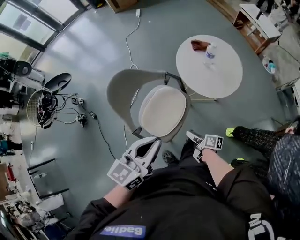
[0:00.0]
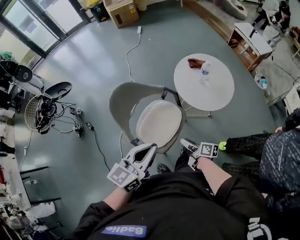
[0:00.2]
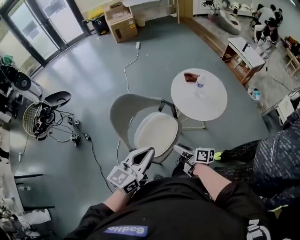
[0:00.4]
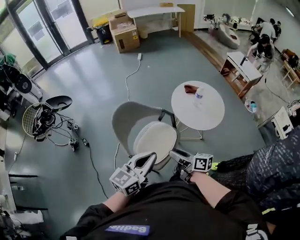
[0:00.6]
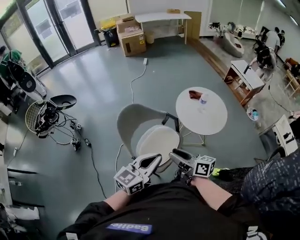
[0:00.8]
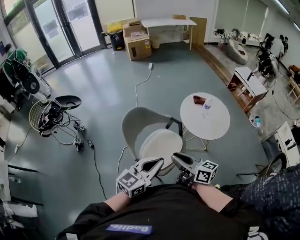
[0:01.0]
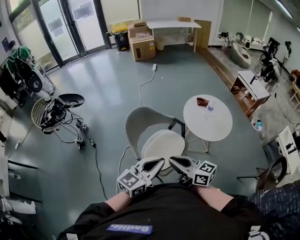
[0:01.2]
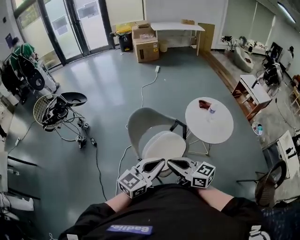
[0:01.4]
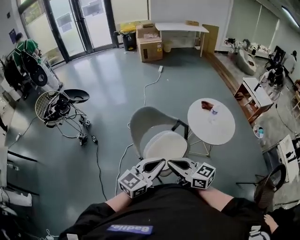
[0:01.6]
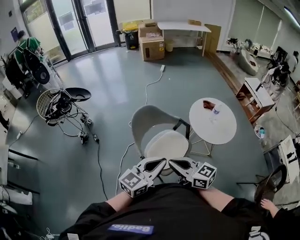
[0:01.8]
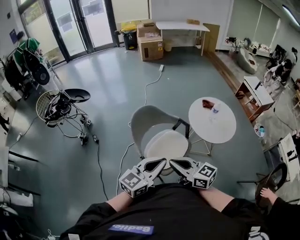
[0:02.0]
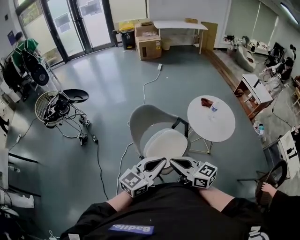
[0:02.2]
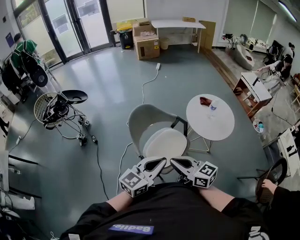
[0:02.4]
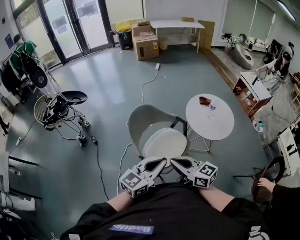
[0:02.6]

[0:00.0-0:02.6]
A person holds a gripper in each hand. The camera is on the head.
0:00.0 to 0:01.2: The right gripper goes some 35 cm upward and to the left, rolls counterclockwise, seen from behind, by approximately 50 degrees, and closes its fingers. Meanwhile the left gripper changes place by approximately 10 cm.
0:01.2 to 0:02.6: There are only small adjustments of the grippers.

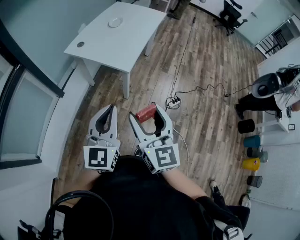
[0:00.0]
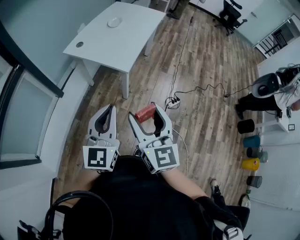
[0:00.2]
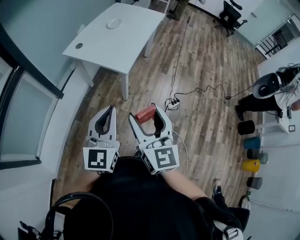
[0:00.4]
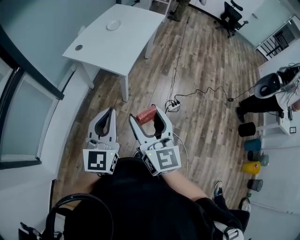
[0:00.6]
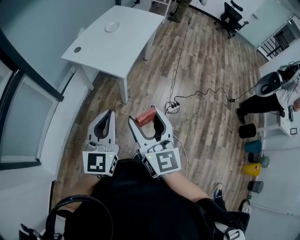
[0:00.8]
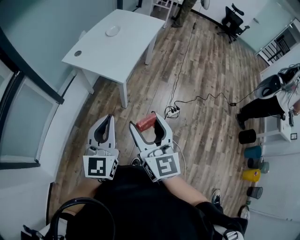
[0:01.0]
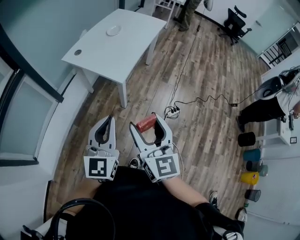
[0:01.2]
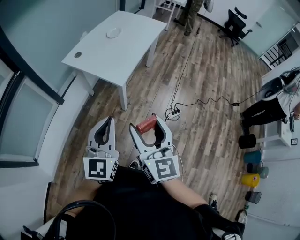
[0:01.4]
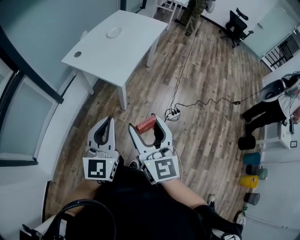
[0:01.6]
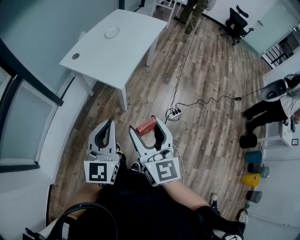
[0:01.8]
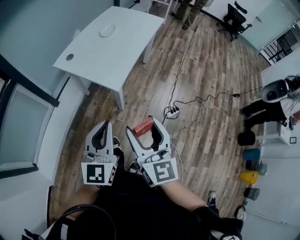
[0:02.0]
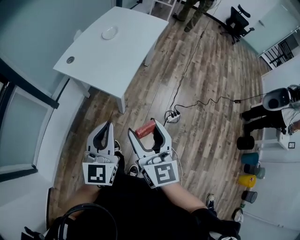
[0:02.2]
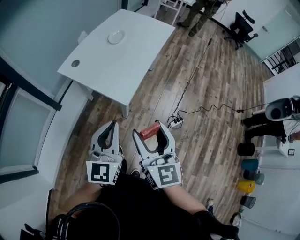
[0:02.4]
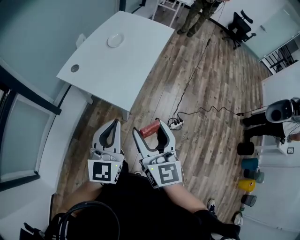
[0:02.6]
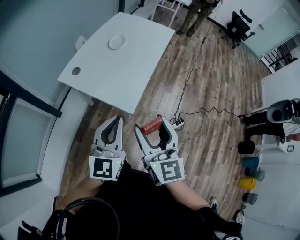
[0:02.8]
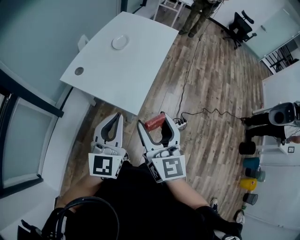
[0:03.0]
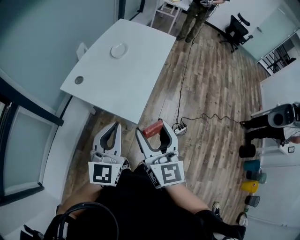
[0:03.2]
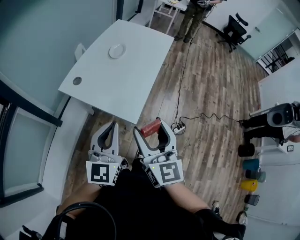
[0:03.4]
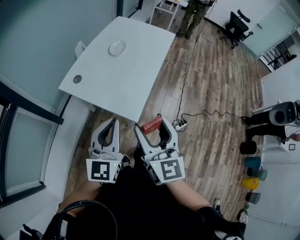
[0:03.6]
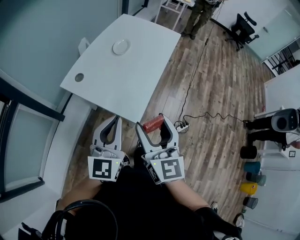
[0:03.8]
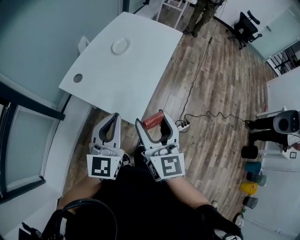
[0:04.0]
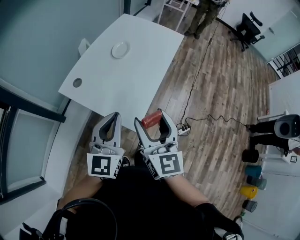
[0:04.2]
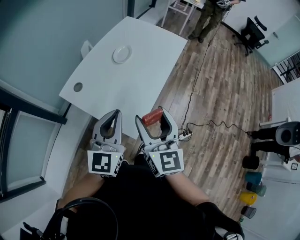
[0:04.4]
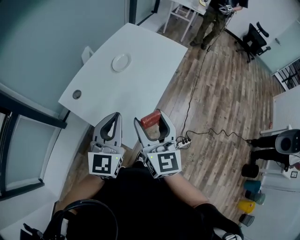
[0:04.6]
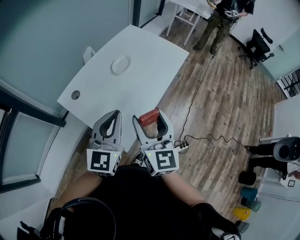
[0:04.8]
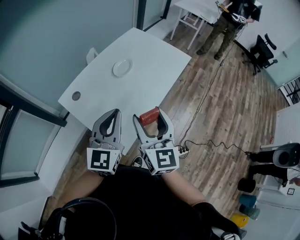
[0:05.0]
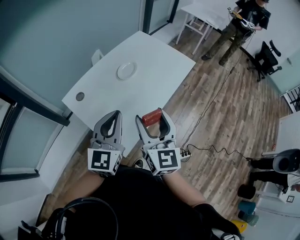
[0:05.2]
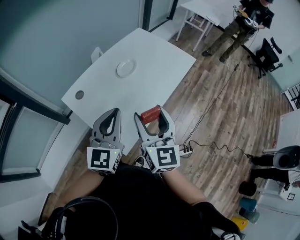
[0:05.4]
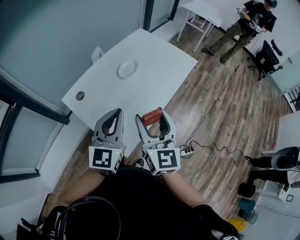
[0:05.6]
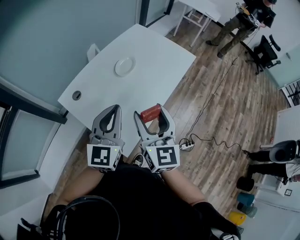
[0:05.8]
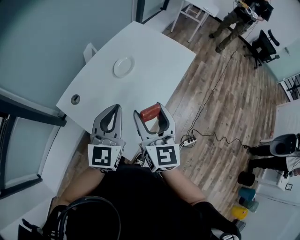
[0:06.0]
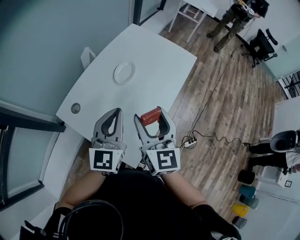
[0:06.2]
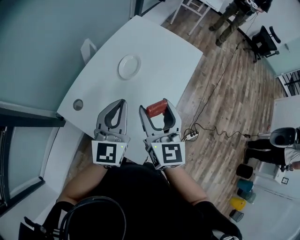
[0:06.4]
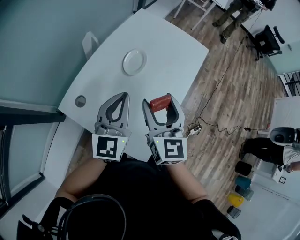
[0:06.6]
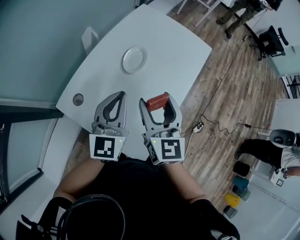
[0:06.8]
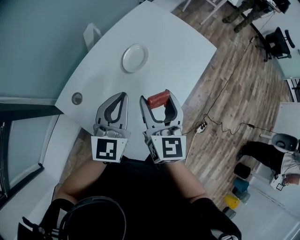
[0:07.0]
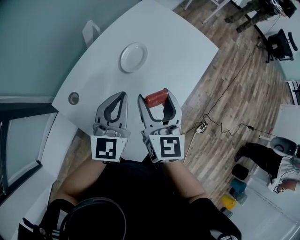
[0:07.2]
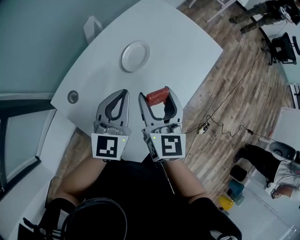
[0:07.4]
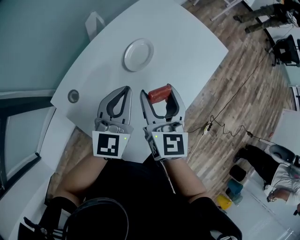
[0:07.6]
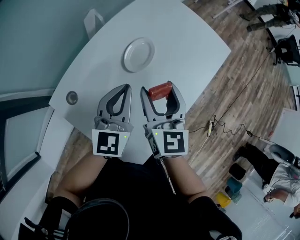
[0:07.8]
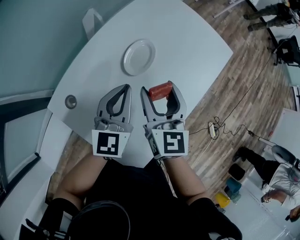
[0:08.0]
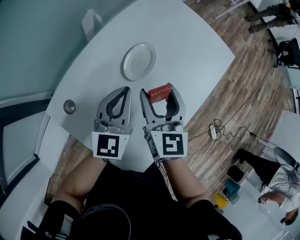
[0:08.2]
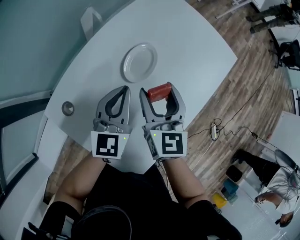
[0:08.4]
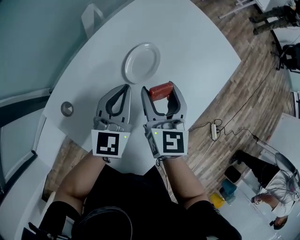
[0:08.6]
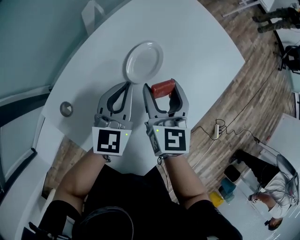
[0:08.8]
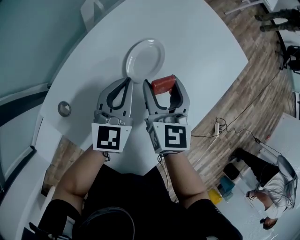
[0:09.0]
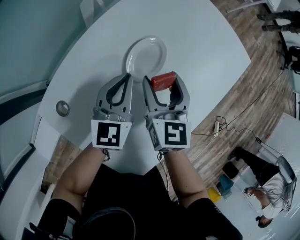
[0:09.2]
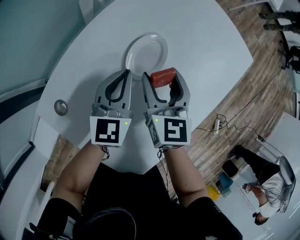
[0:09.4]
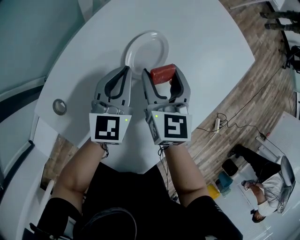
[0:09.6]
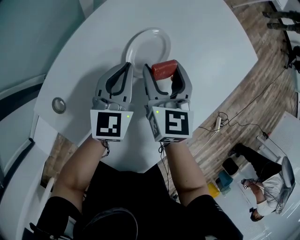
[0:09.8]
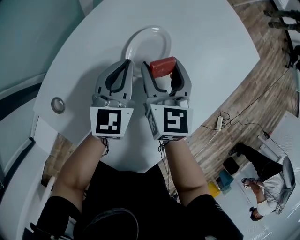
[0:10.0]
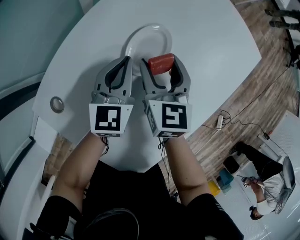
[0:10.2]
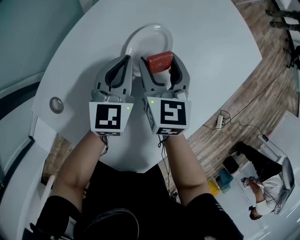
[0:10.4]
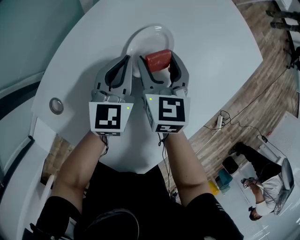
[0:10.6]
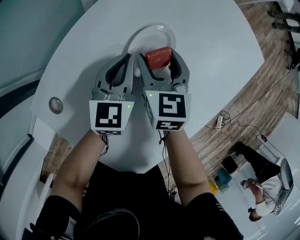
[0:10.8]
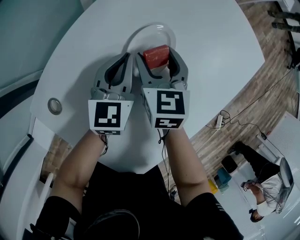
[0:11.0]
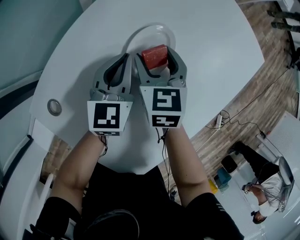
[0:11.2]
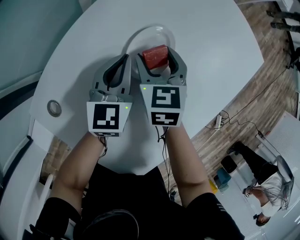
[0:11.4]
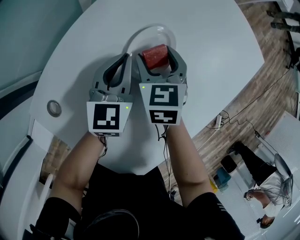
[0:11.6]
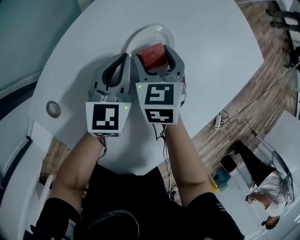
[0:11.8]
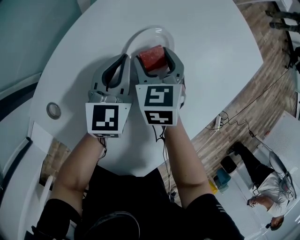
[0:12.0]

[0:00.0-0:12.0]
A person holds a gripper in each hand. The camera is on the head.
0:00.0 to 0:01.6: The grippers both shift to the right by some 5 cm.
0:01.6 to 0:03.0: The two grippers go approximately 20 cm forward.
0:03.0 to 0:04.4: The grippers both shift forward by about 15 cm.
0:04.4 to 0:06.0: The two grippers go roughly 15 cm forward.
0:06.0 to 0:07.6: The grippers both shift forward and downward by roughly 15 cm.
0:07.6 to 0:09.0: The grippers both shift forward and downward by roughly 15 cm.
0:09.0 to 0:10.4: The grippers both shift downward by about 5 cm.
0:10.4 to 0:12.0: The right gripper changes place by approximately 5 cm.

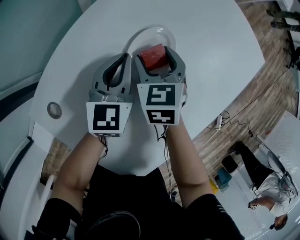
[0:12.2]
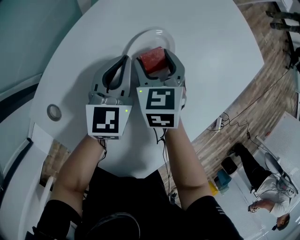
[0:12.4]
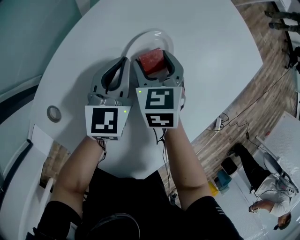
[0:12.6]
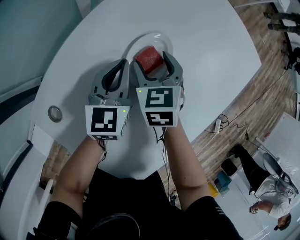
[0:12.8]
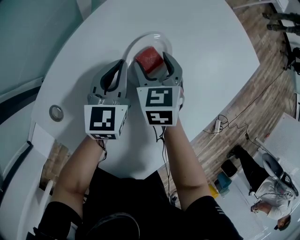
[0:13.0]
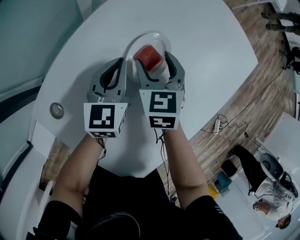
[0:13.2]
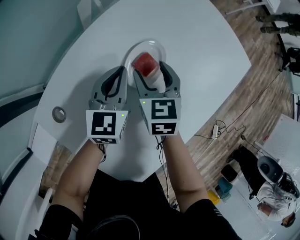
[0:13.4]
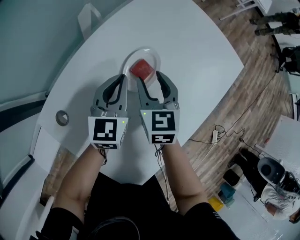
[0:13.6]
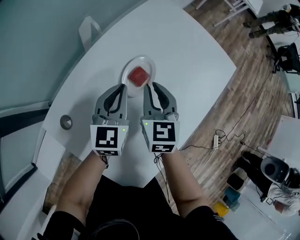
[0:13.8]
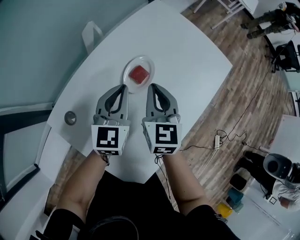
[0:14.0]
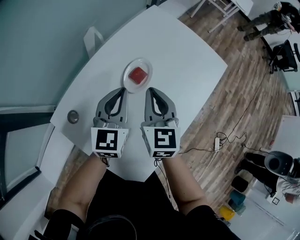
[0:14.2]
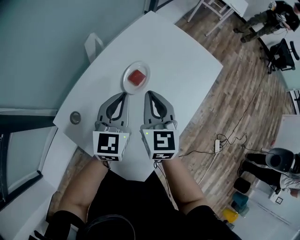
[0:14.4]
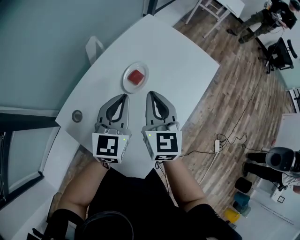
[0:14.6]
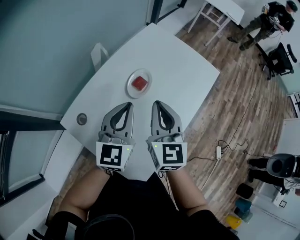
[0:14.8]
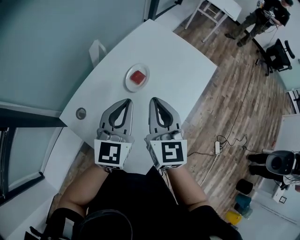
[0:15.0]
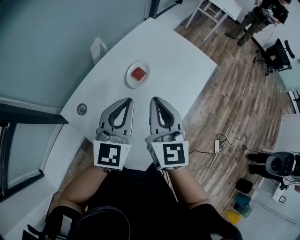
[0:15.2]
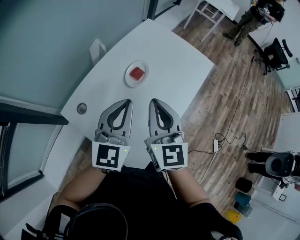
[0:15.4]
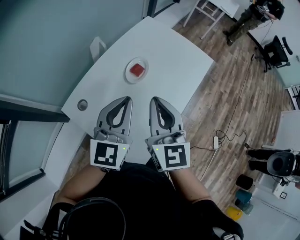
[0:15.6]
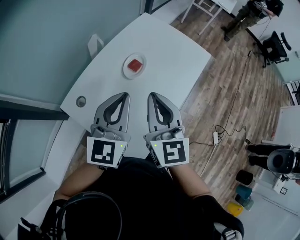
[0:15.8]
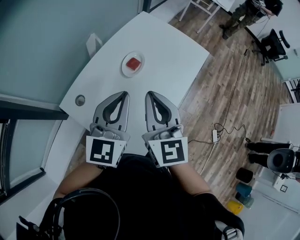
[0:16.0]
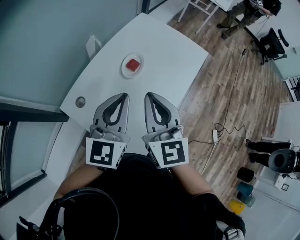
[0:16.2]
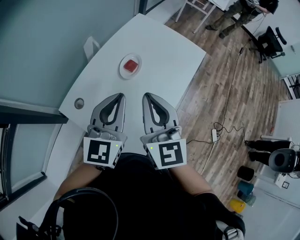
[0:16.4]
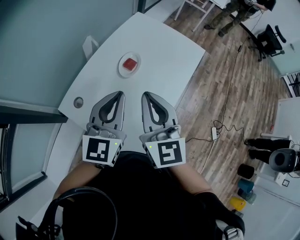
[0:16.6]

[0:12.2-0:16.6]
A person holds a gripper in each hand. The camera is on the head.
0:12.2 to 0:13.6: The right gripper is displaced upward by roughly 5 cm.
0:13.6 to 0:15.2: The grippers both shift upward and backward by some 25 cm. The right gripper swivels roughly 30 degrees, and closes its fingers.
0:15.2 to 0:16.6: The left gripper shifts by about 5 cm. Meanwhile the right gripper shifts approximately 5 cm backward.

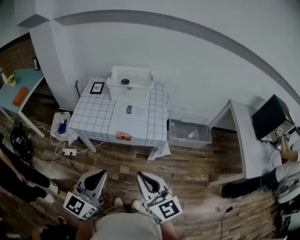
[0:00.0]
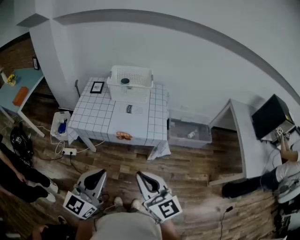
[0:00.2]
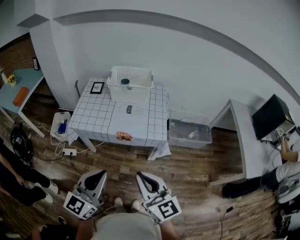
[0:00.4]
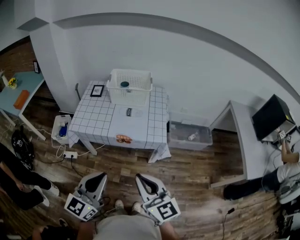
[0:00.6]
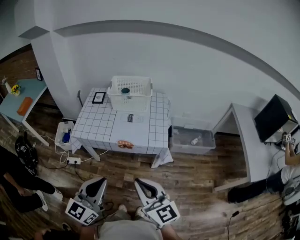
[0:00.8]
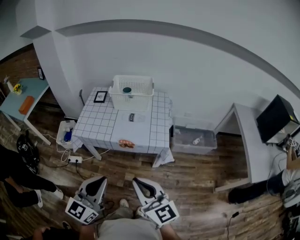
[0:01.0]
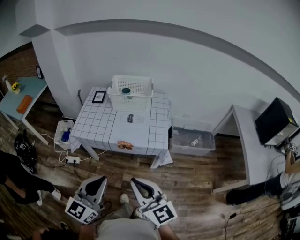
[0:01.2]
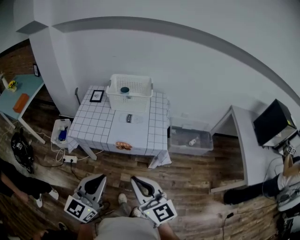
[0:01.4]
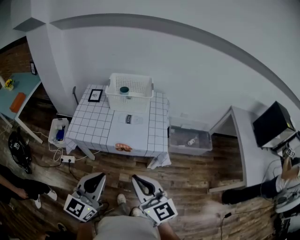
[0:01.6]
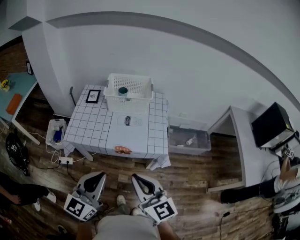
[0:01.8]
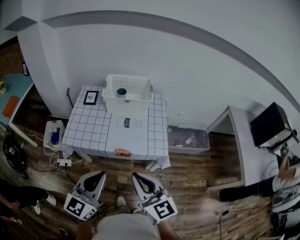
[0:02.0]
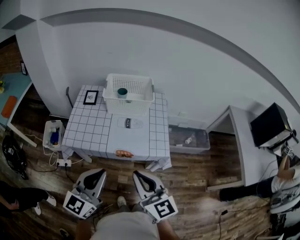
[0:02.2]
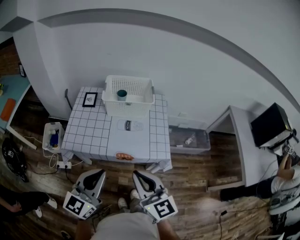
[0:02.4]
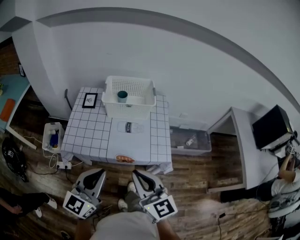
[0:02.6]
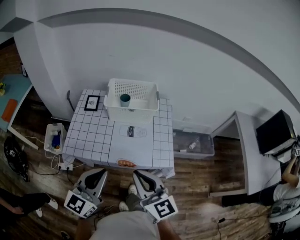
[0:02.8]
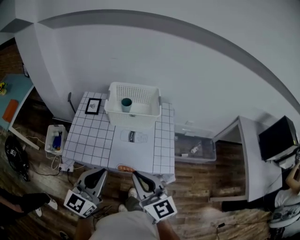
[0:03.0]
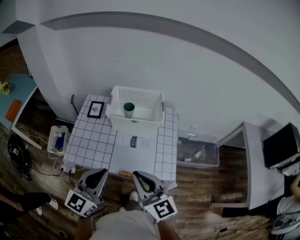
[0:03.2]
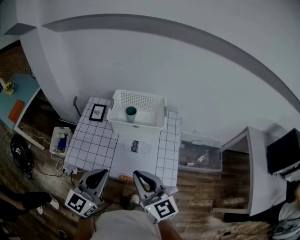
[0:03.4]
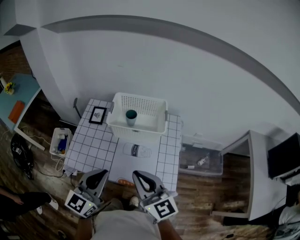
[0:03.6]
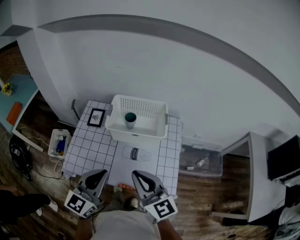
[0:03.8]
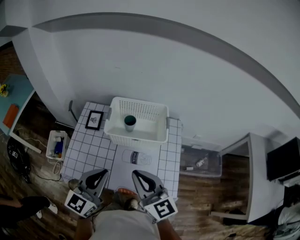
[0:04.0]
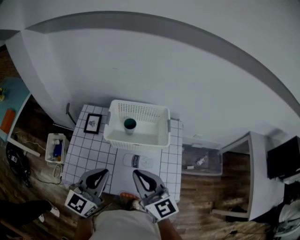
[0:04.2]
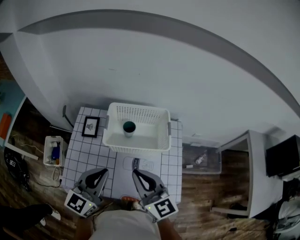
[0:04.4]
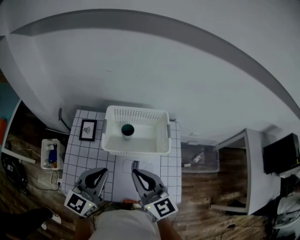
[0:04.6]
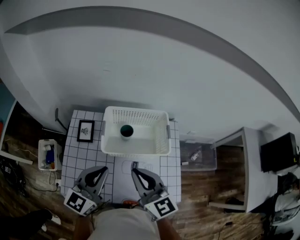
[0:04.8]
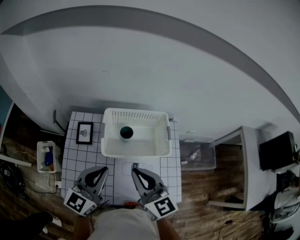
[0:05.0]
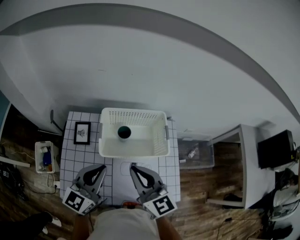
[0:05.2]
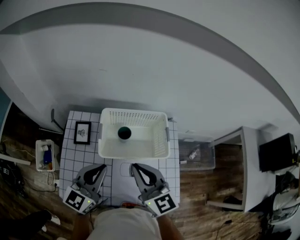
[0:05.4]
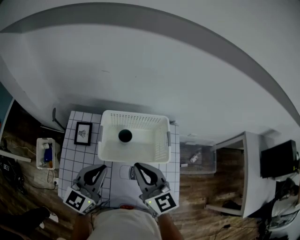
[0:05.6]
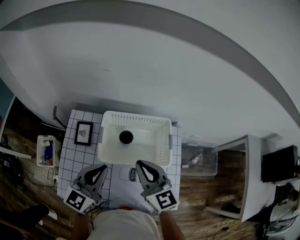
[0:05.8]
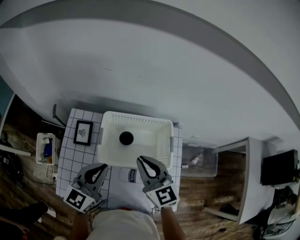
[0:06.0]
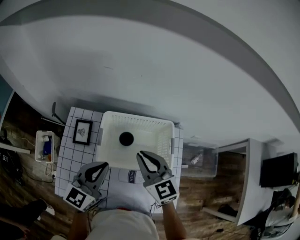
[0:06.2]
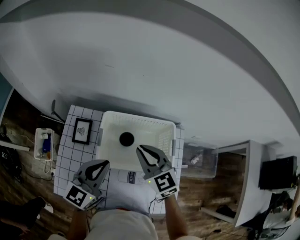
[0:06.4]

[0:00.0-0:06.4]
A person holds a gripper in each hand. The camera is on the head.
0:00.0 to 0:01.6: The grippers both shift forward by about 5 cm.
0:01.6 to 0:03.2: Both grippers move forward, approximately 25 cm.
0:03.2 to 0:04.8: Both grippers travel together forward, about 25 cm.
0:04.8 to 0:06.4: The right gripper shifts about 20 cm forward and downward, and rotates approximately 30 degrees. Meanwhile the left gripper goes approximately 10 cm forward.
